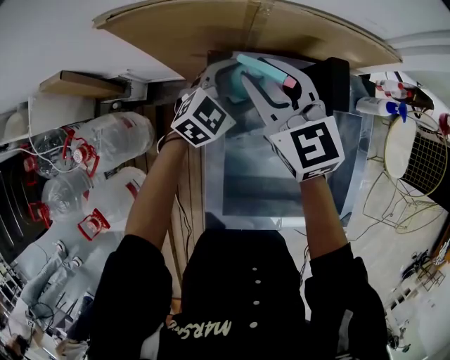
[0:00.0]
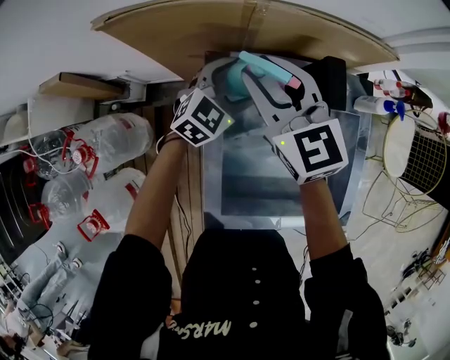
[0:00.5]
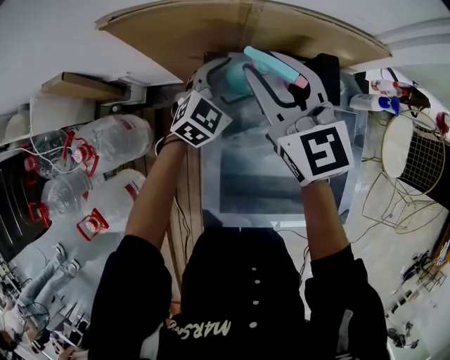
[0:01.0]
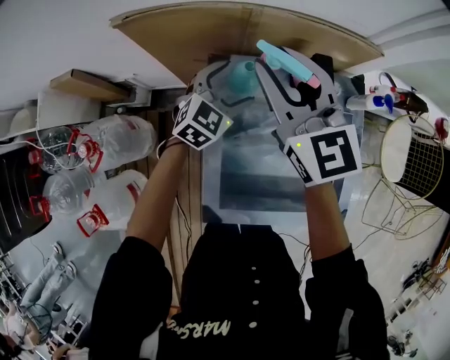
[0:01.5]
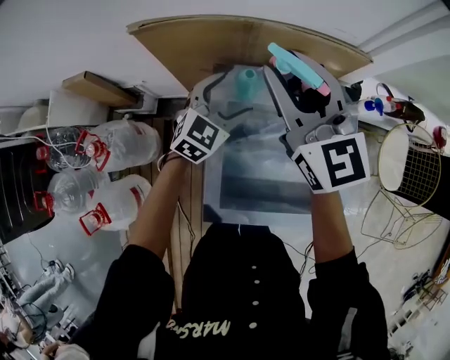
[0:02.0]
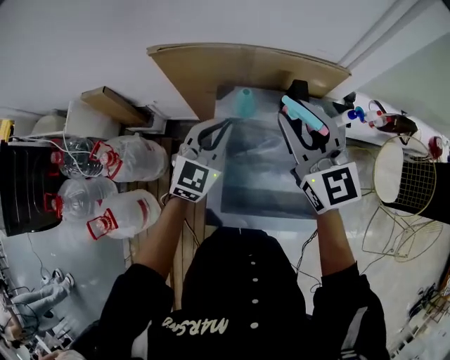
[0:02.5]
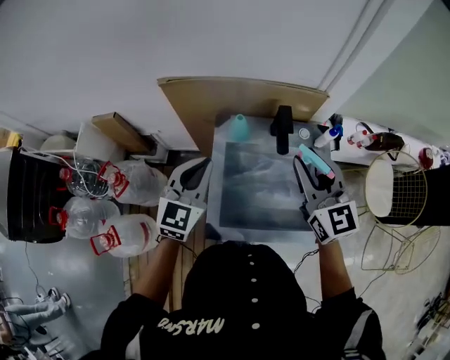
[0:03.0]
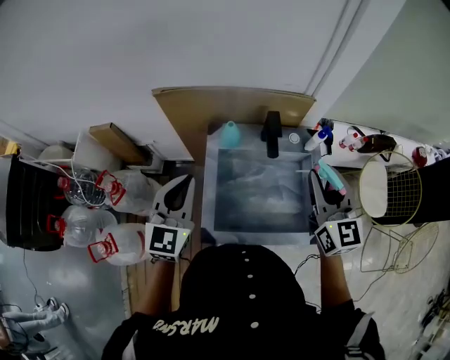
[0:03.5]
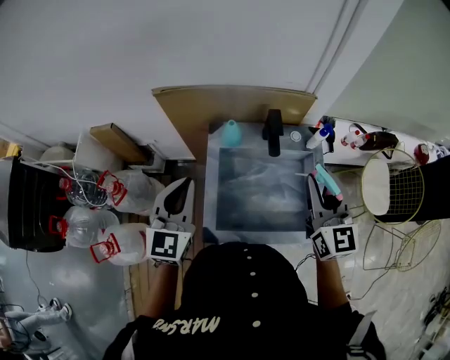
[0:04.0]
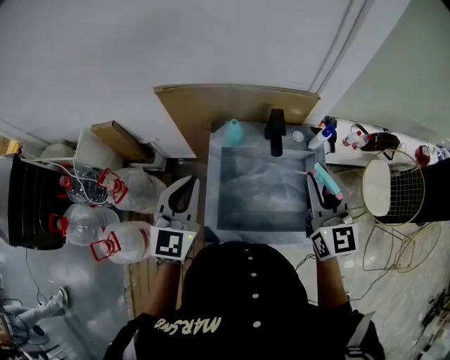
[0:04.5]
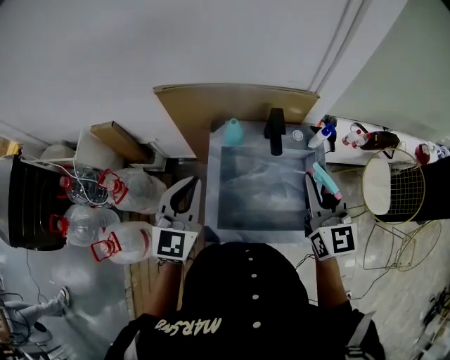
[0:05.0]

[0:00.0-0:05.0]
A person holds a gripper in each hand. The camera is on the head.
0:00.0 to 0:02.5: The right gripper moves upward, backward and to the right, about 20 cm. Meanwhile the left gripper travels upward and backward by roughly 20 cm, turns by about 30 degrees, and closes up.
0:02.5 to 0:05.0: The left gripper is displaced backward and upward by approximately 15 cm. Meanwhile the right gripper heads backward and to the right, covering approximately 15 cm.

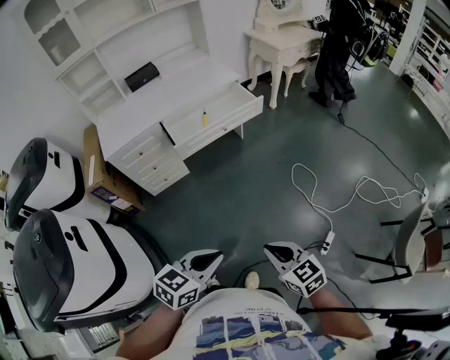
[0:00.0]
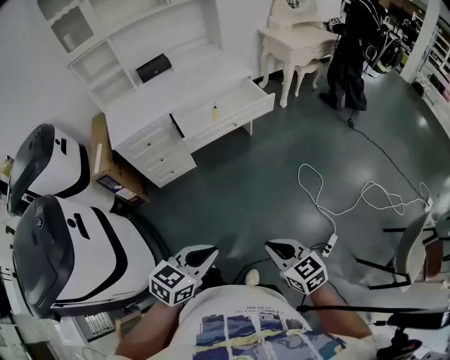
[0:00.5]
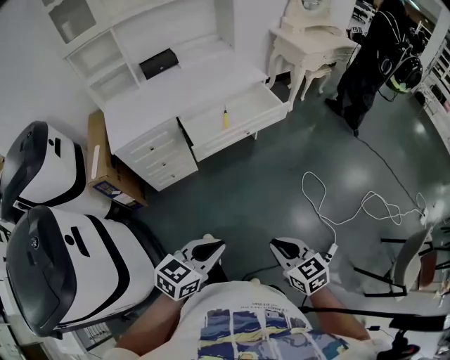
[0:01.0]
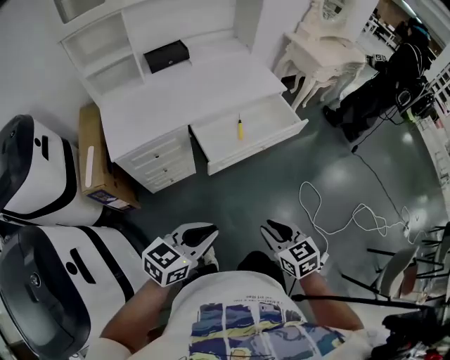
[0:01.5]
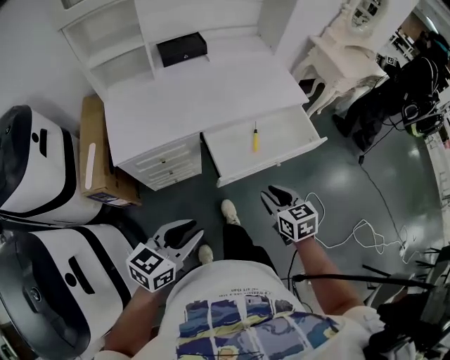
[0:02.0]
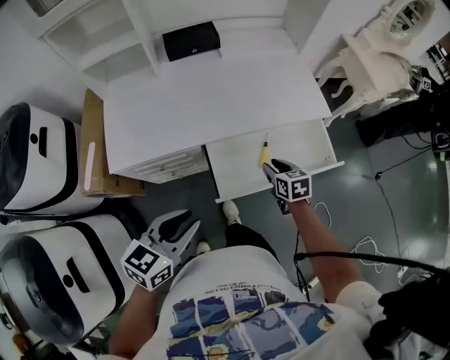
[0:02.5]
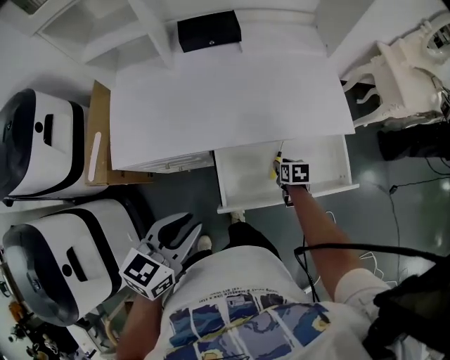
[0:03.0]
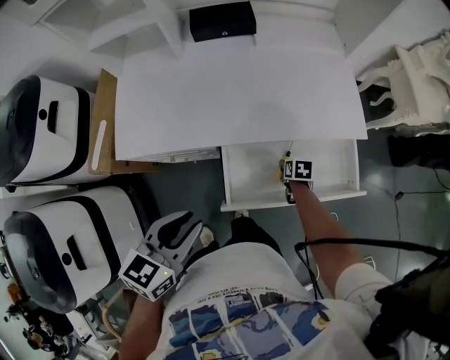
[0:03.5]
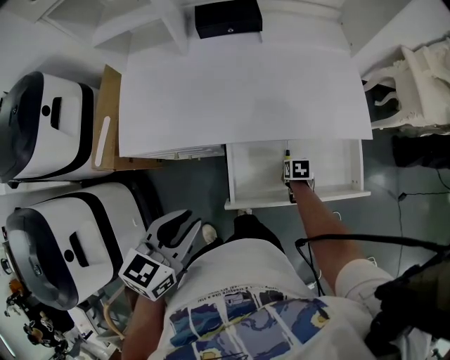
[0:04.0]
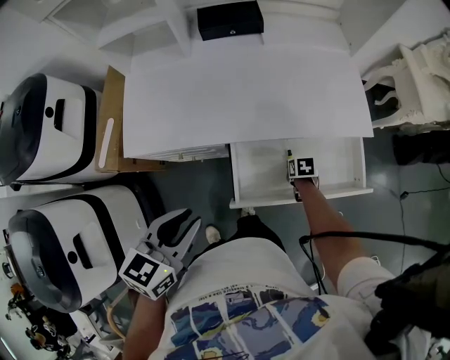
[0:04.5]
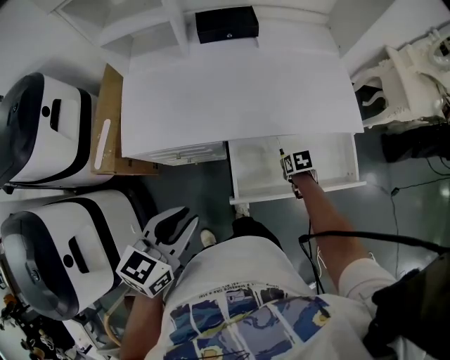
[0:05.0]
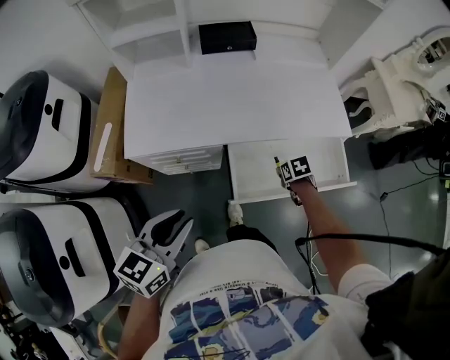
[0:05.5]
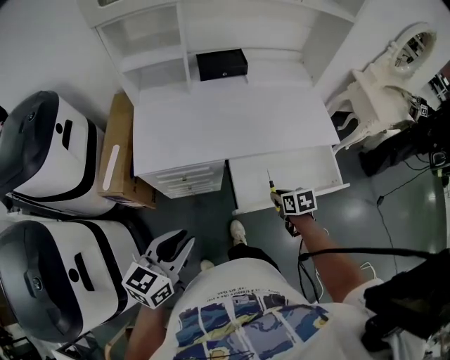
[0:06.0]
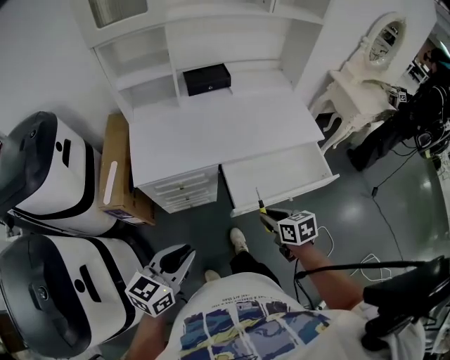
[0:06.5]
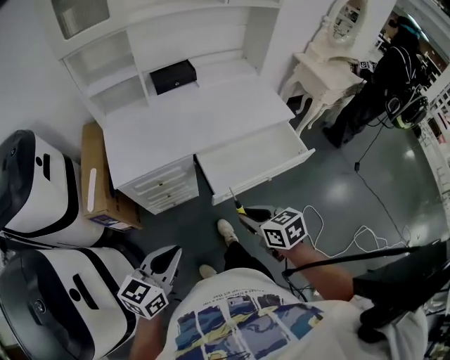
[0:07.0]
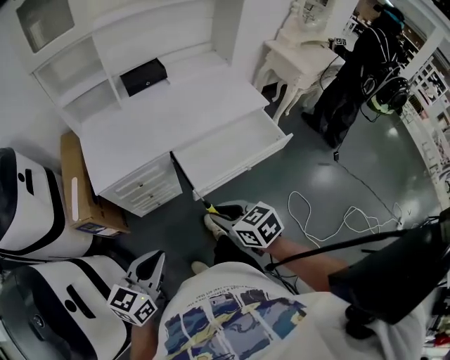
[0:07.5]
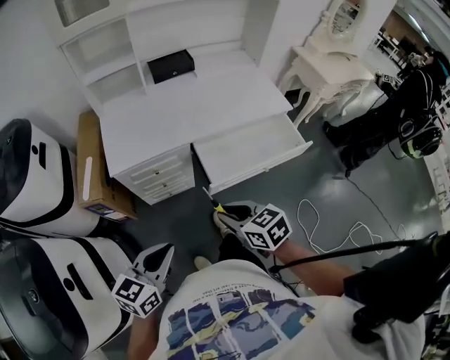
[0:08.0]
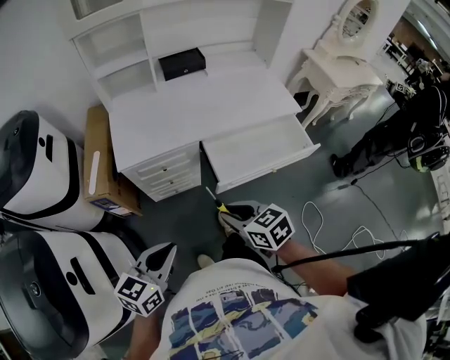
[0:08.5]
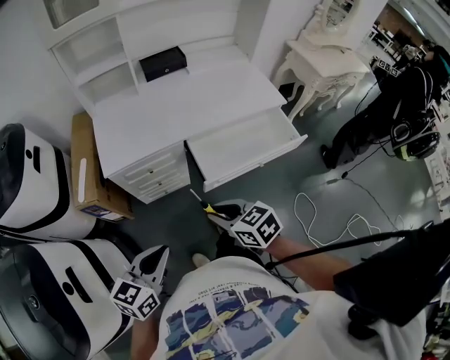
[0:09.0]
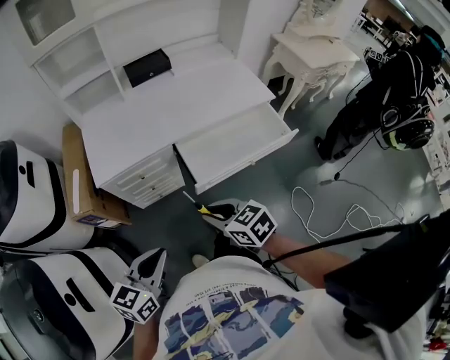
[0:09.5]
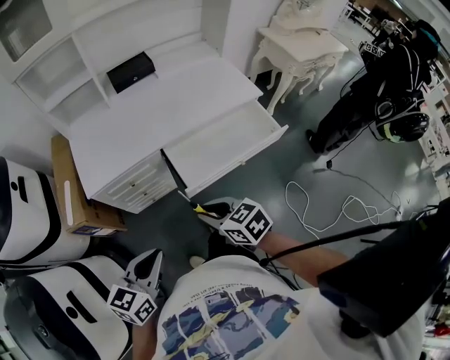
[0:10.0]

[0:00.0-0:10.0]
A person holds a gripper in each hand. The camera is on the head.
0:00.0 to 0:02.0: The pair of grippers is taken forward and to the left, some 40 cm. The right gripper opens; the left gripper opens its fingers.
0:02.0 to 0:04.0: The left gripper shifts approximately 15 cm forward, and swivels approximately 30 degrees, while the right gripper shifts about 40 cm downward and forward, and tips its fingers downward by approximately 30 degrees.
0:04.0 to 0:06.0: The right gripper goes about 20 cm upward. Meanwhile the left gripper changes place by about 15 cm.
0:06.0 to 0:08.0: The right gripper moves backward, upward and to the left, some 30 cm, and rotates approximately 30 degrees. Meanwhile the left gripper moves backward, approximately 10 cm.
0:08.0 to 0:10.0: The grippers move only a little.

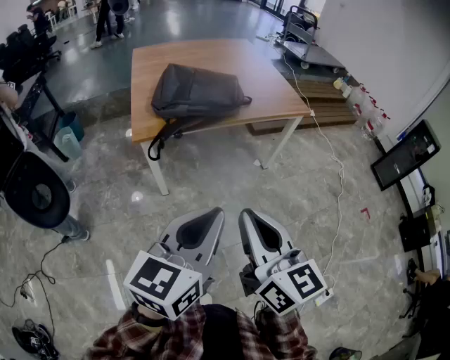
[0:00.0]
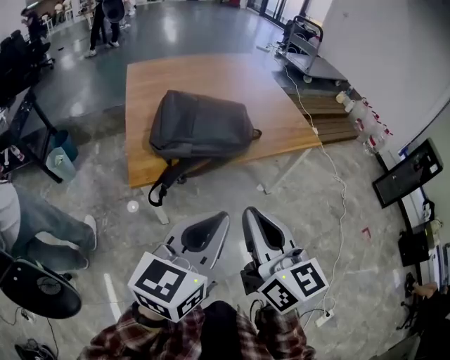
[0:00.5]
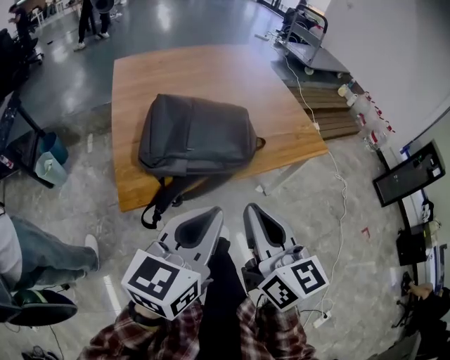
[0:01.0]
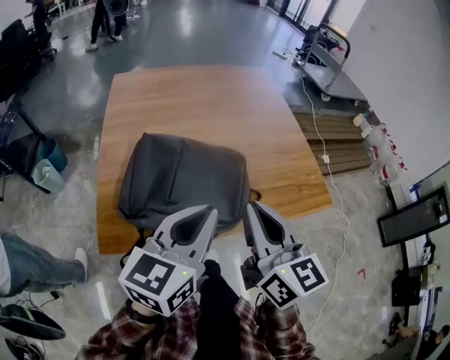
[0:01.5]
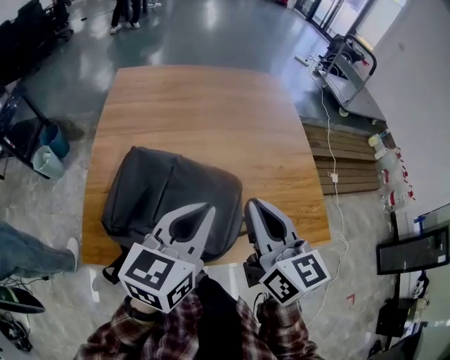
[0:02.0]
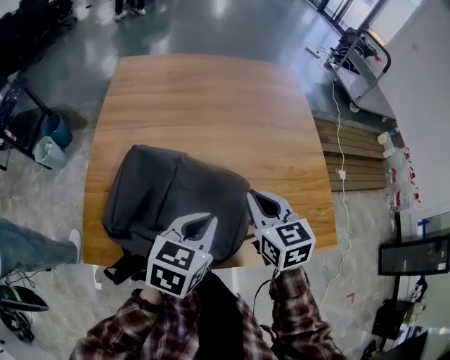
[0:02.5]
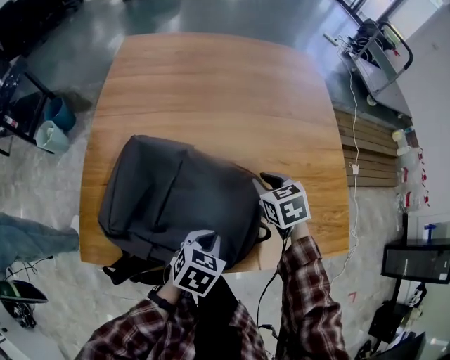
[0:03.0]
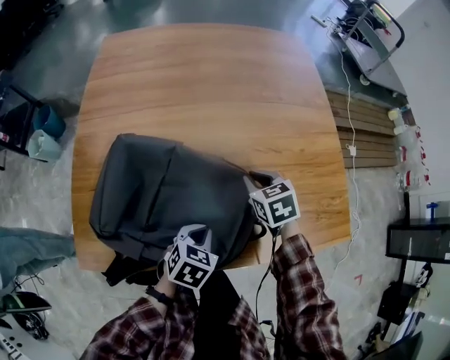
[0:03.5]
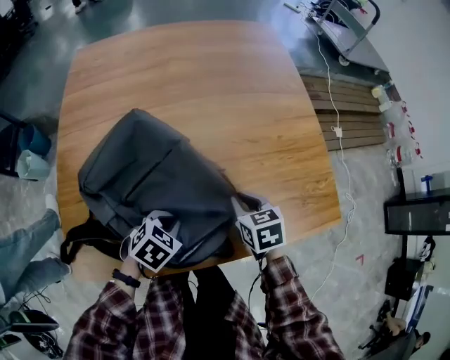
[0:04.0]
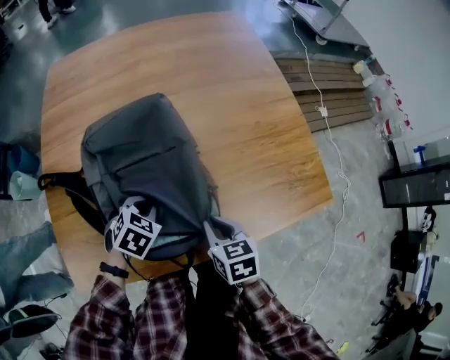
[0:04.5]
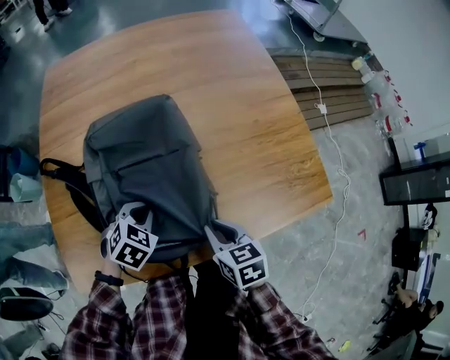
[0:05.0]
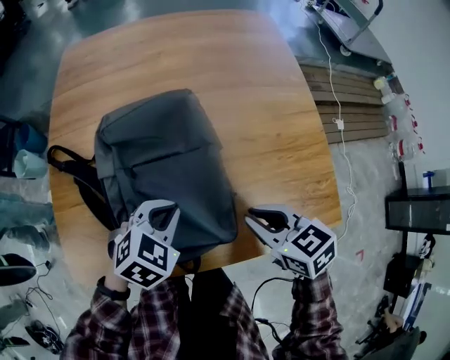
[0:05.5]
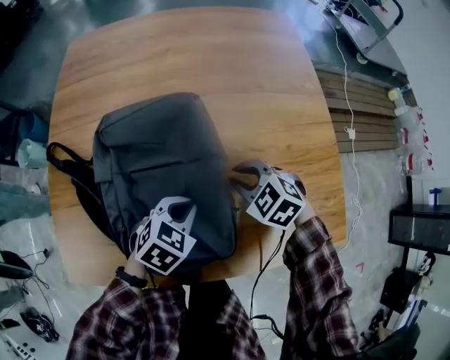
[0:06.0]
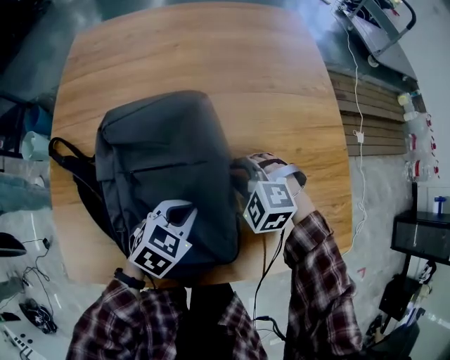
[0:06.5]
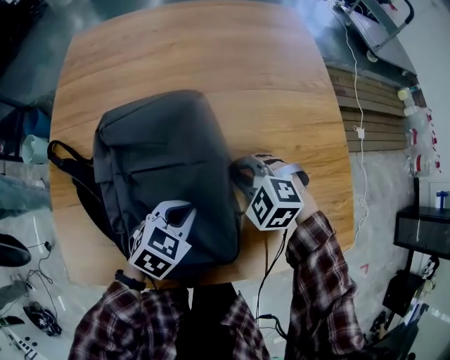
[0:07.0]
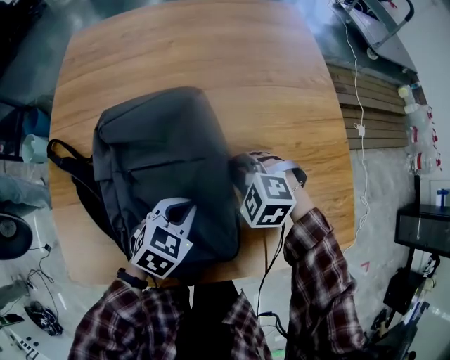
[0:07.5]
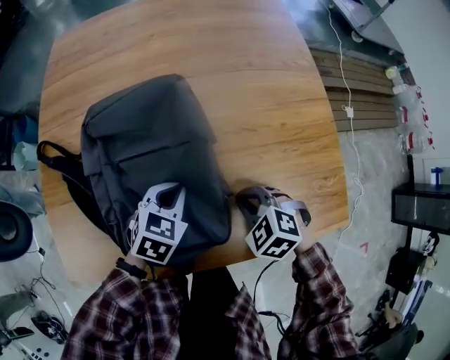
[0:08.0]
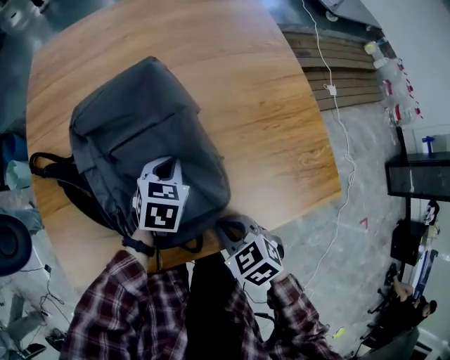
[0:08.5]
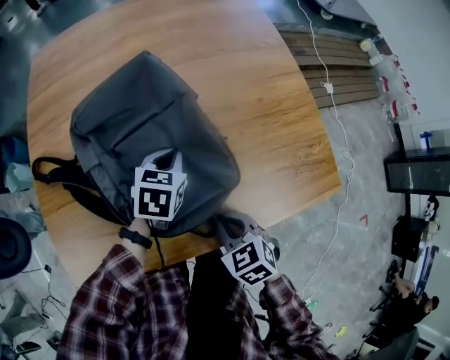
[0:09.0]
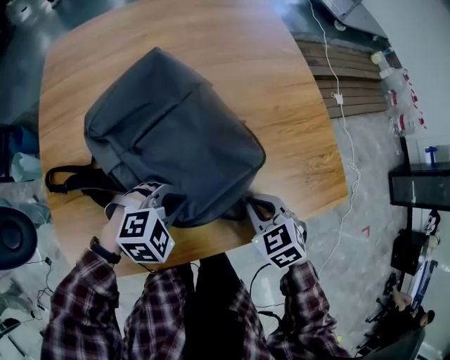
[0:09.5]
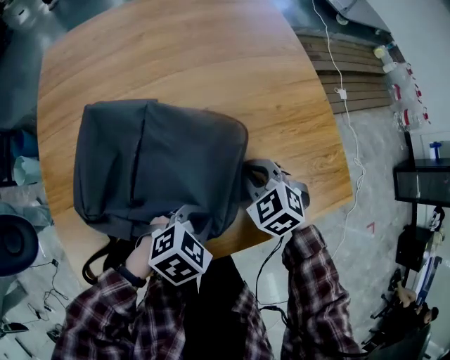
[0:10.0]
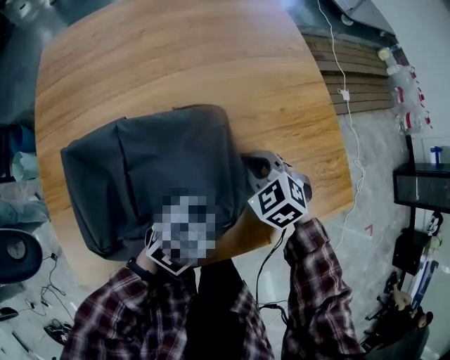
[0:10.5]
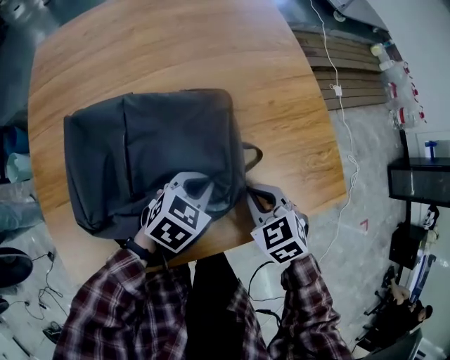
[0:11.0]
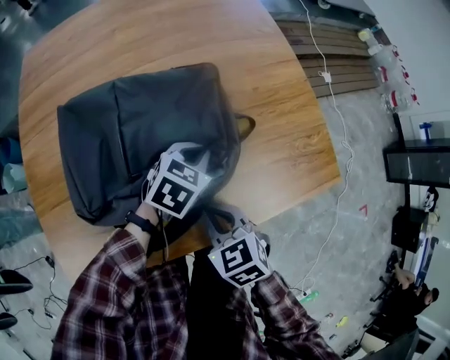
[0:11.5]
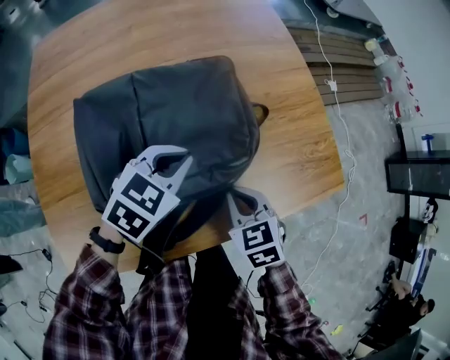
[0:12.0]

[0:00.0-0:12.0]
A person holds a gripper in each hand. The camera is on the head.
0:00.0 to 0:02.0: The two grippers travel together, forward, roughly 60 cm.
0:02.0 to 0:04.0: Both grippers travel together downward, approximately 30 cm. The left gripper angles its fingers downward, by about 50 degrees, while the right gripper tips its fingers downward by roughly 40 degrees.
0:04.0 to 0:06.0: The left gripper shifts about 10 cm forward and to the right. Meanwhile the right gripper travels forward by roughly 10 cm, and twists about 50 degrees counterclockwise, seen from behind.
0:06.0 to 0:08.0: The right gripper shifts roughly 10 cm backward.
0:08.0 to 0:10.0: The right gripper rotates roughly 20 degrees; the left gripper changes place by roughly 10 cm, and rotates approximately 30 degrees.
0:10.0 to 0:12.0: The right gripper moves backward, roughly 10 cm, and rotates approximately 30 degrees, while the left gripper shifts approximately 10 cm forward and upward.
